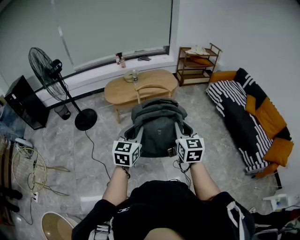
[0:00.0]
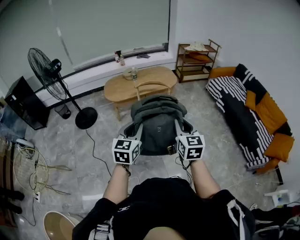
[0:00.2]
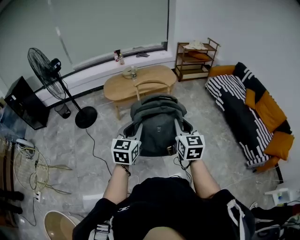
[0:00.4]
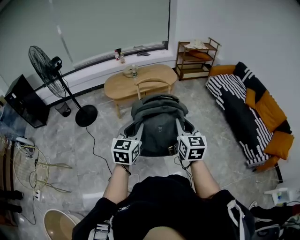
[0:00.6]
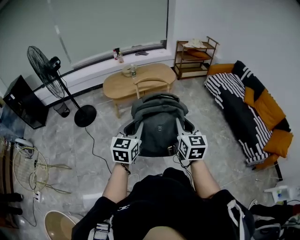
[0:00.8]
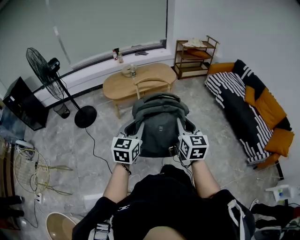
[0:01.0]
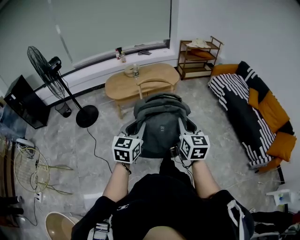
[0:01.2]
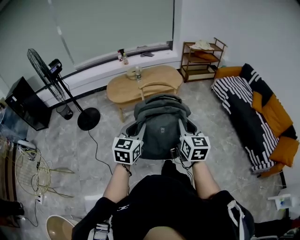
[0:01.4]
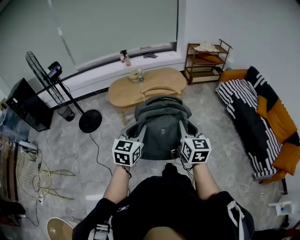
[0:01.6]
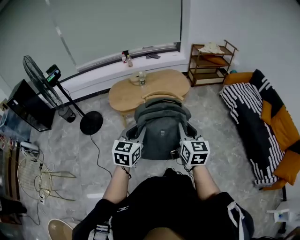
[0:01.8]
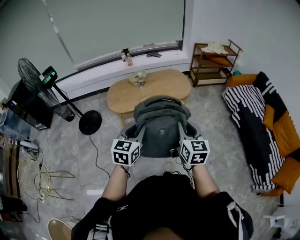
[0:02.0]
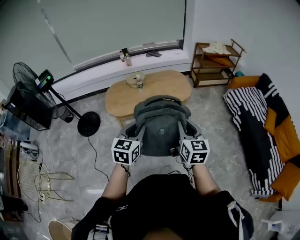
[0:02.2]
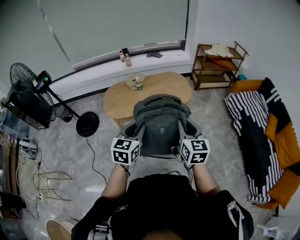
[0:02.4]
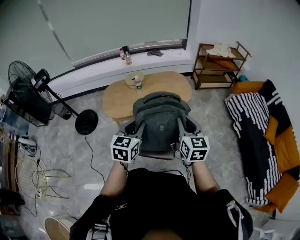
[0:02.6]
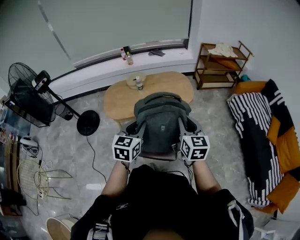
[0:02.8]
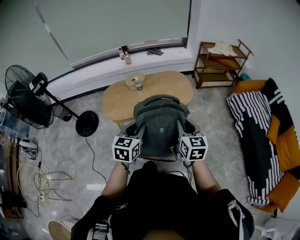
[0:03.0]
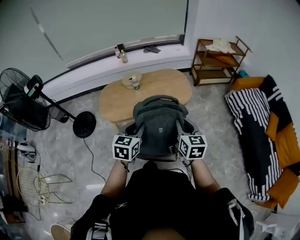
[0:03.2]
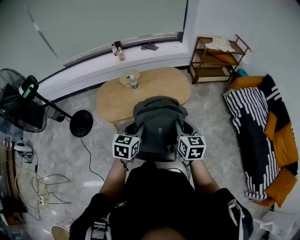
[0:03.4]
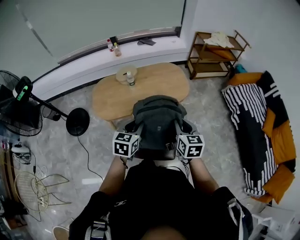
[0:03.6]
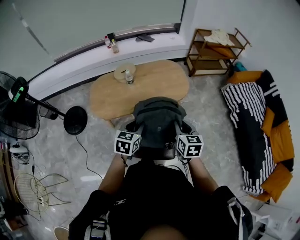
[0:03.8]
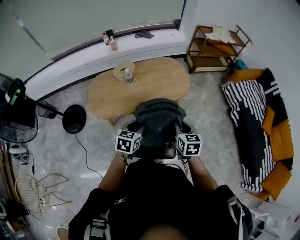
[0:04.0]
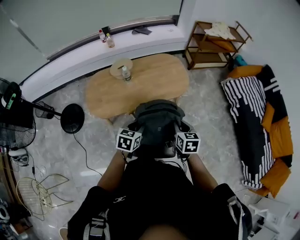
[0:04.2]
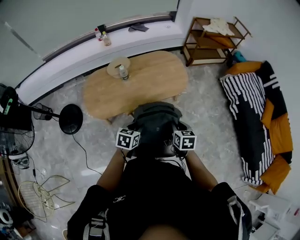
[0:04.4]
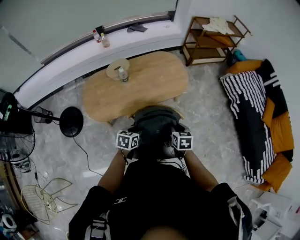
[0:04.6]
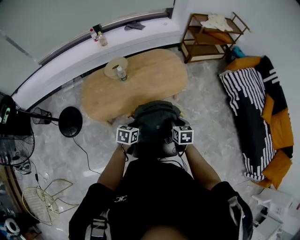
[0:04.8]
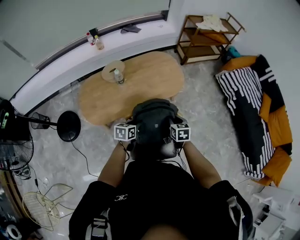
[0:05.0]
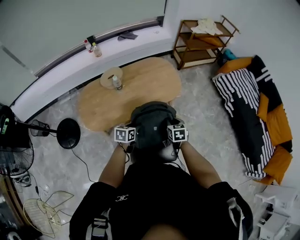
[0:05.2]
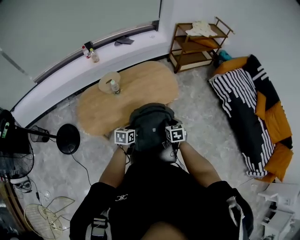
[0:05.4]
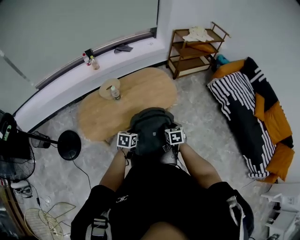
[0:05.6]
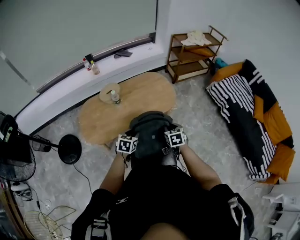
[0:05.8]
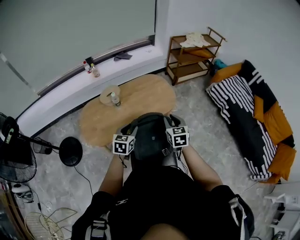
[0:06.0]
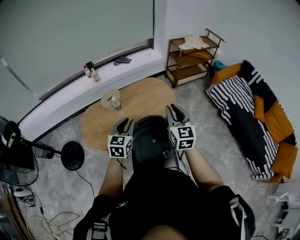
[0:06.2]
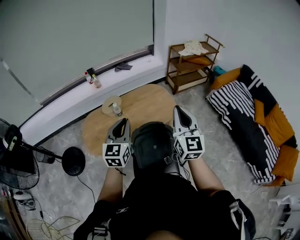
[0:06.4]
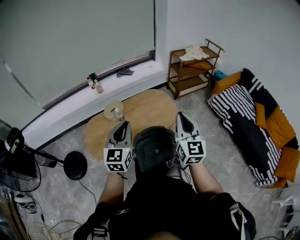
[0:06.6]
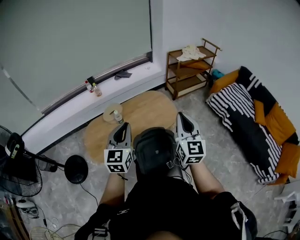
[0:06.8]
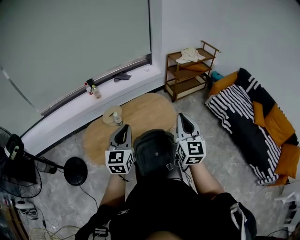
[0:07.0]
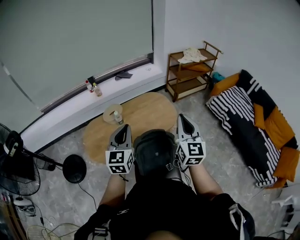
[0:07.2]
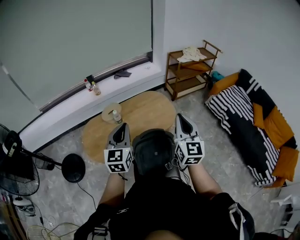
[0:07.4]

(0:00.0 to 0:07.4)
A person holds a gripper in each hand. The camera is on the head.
0:00.0 - 0:01.4: The two grippers go roughly 5 cm forward.
0:01.4 - 0:03.0: The pair of grippers is taken forward, approximately 50 cm.
0:03.0 - 0:04.4: Both grippers move downward and forward, approximately 30 cm. The right gripper turns by roughly 30 degrees, while the left gripper rotates roughly 30 degrees.
0:04.4 - 0:06.0: Both grippers move upward and forward, approximately 10 cm. The right gripper rotates approximately 20 degrees.
0:06.0 - 0:07.4: The two grippers go some 20 cm upward. The left gripper turns by some 30 degrees, and closes its fingers. Meanwhile the right gripper tips its fingers upward by roughly 30 degrees, and closes its fingers.

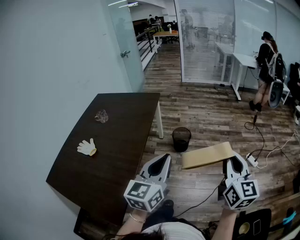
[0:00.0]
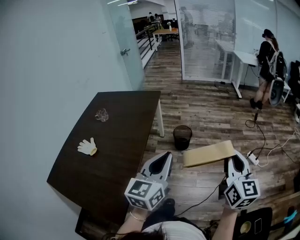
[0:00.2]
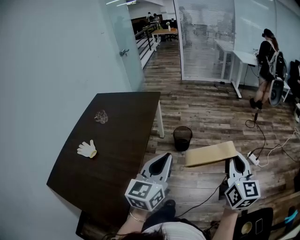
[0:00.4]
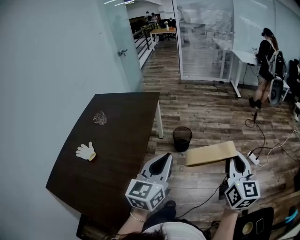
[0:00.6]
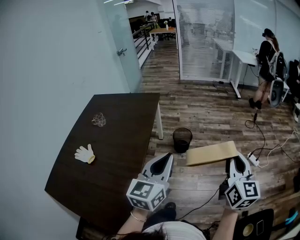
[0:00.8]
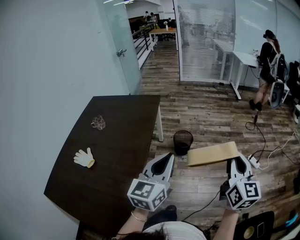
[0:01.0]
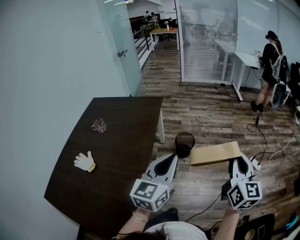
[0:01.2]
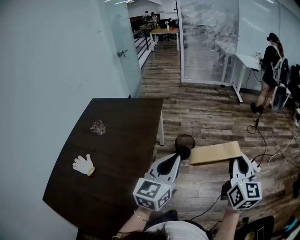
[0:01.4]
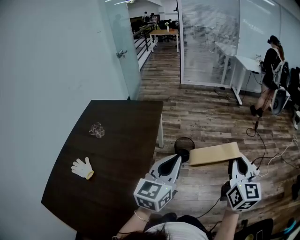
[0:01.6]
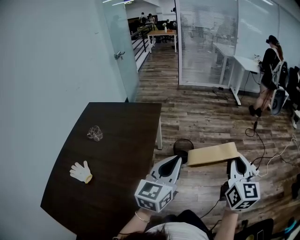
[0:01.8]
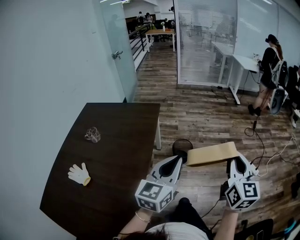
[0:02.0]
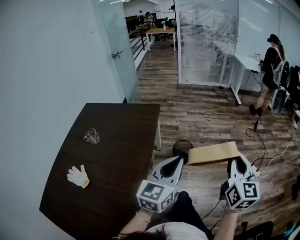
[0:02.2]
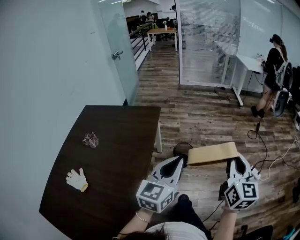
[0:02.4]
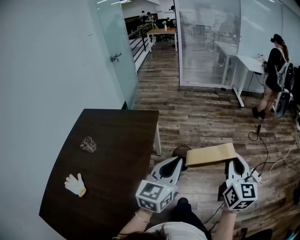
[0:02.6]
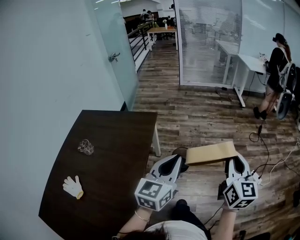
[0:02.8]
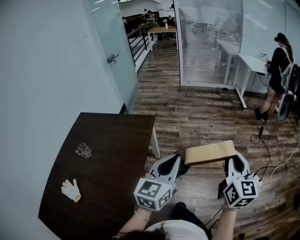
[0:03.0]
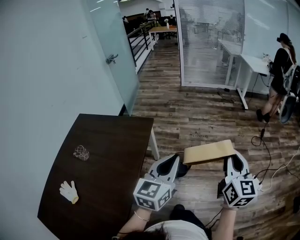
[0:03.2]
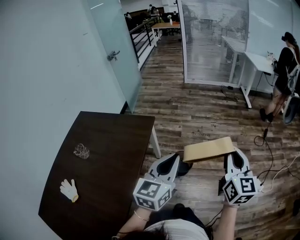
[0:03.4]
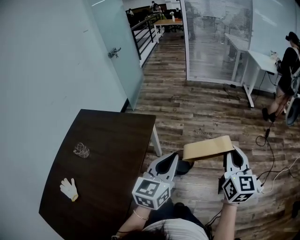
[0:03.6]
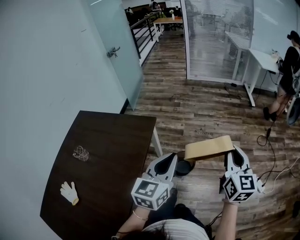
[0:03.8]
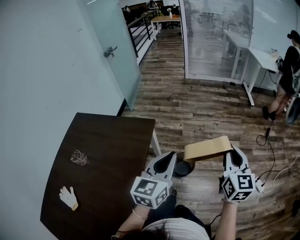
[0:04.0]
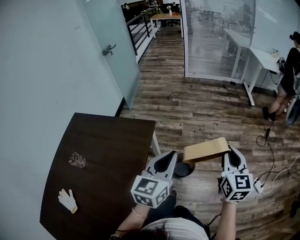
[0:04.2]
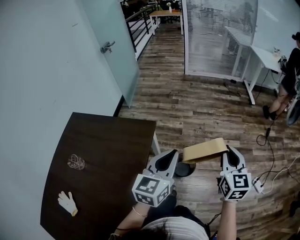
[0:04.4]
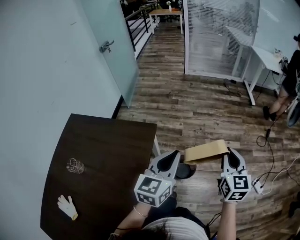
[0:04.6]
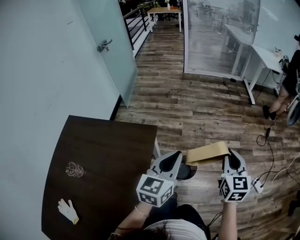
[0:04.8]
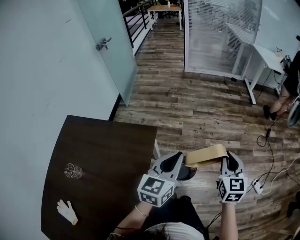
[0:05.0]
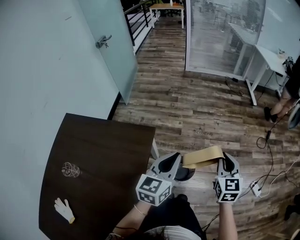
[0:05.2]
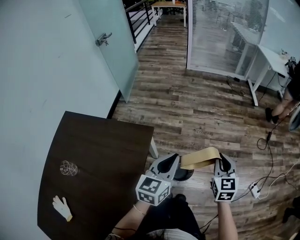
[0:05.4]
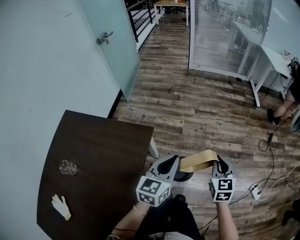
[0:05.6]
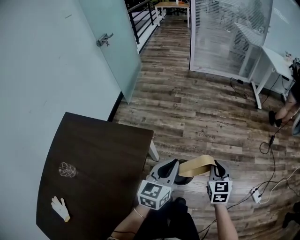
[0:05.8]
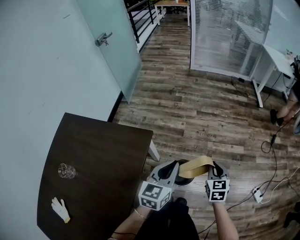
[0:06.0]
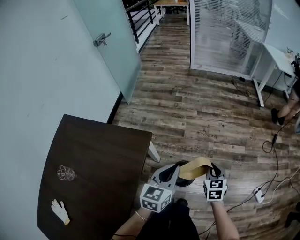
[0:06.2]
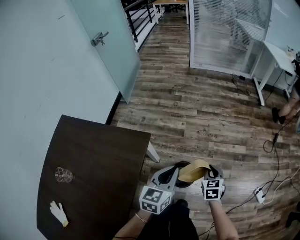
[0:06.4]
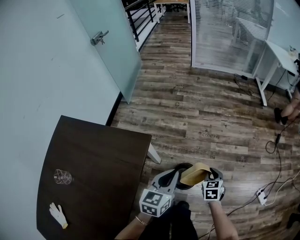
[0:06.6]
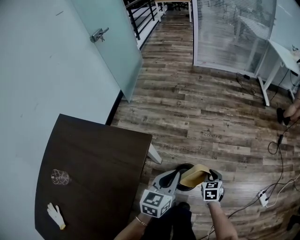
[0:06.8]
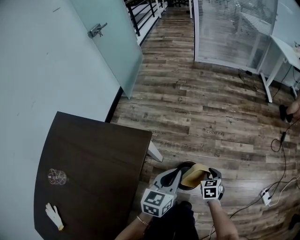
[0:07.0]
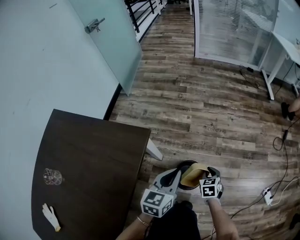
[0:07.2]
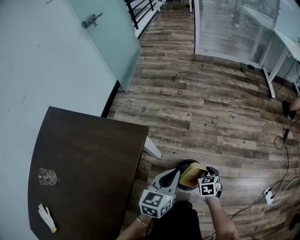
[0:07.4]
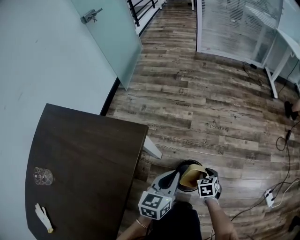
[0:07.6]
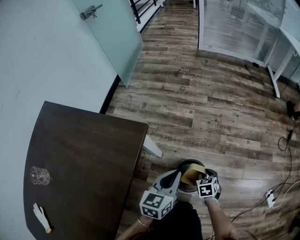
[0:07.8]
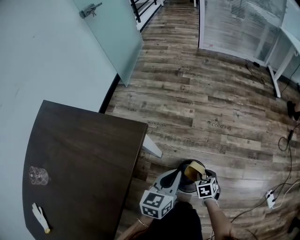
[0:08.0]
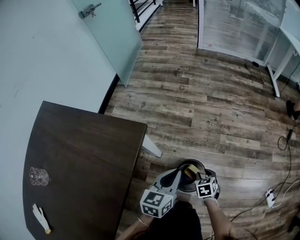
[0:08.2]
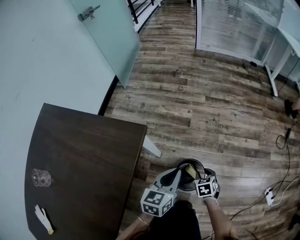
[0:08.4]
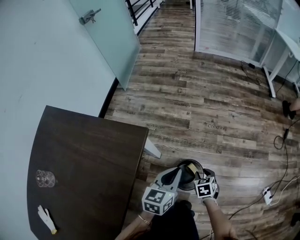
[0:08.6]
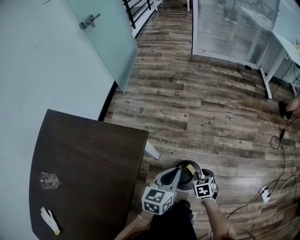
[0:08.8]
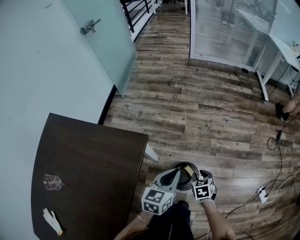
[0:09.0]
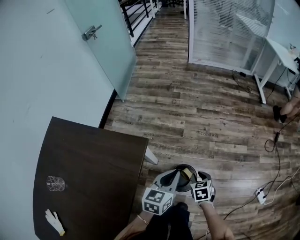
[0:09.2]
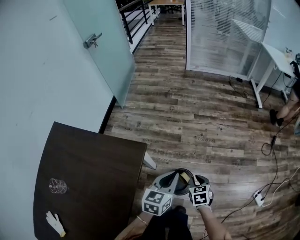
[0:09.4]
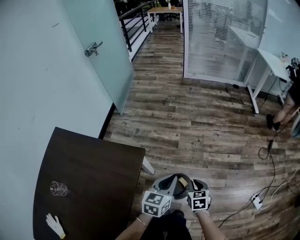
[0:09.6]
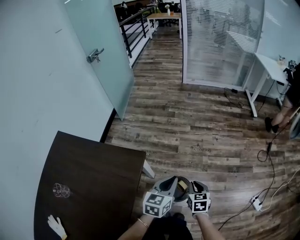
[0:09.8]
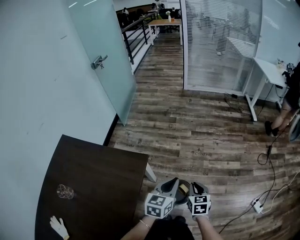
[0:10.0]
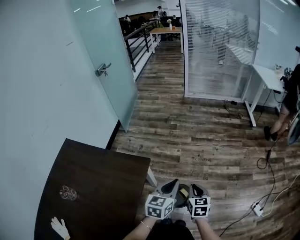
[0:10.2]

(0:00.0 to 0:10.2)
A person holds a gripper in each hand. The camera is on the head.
0:00.0 - 0:01.4: Both grippers travel together forward and to the left, approximately 20 cm.
0:01.4 - 0:03.0: Both grippers move forward, approximately 30 cm.
0:03.0 - 0:04.4: Both grippers travel together forward, approximately 25 cm.
0:04.4 - 0:05.8: The left gripper shifts approximately 20 cm forward and downward; the right gripper is displaced downward and forward by approximately 25 cm.
0:05.8 - 0:07.2: The two grippers go roughly 30 cm downward. The right gripper changes its angle by about 20 degrees.
0:07.2 - 0:08.8: The left gripper travels downward and back again, some 15 cm each way. Meanwhile the right gripper goes downward and returns, approximately 15 cm each way, and opens up.
0:08.8 - 0:10.2: Both grippers move upward, roughly 30 cm. The right gripper changes its angle by some 30 degrees, and closes.

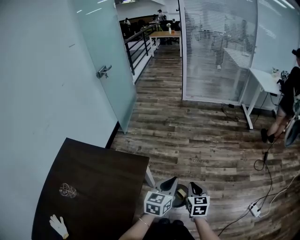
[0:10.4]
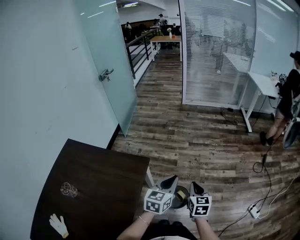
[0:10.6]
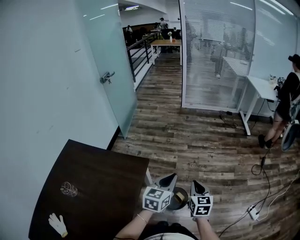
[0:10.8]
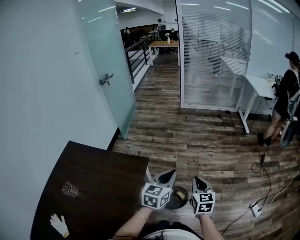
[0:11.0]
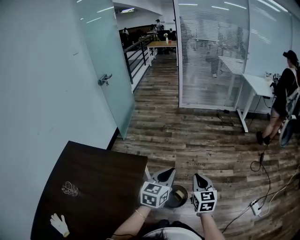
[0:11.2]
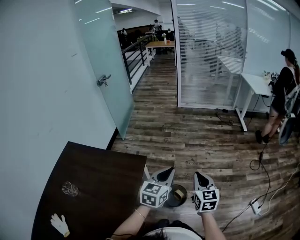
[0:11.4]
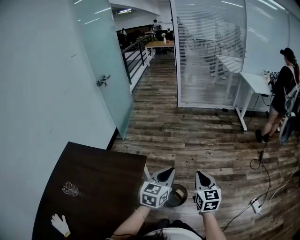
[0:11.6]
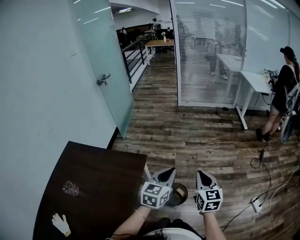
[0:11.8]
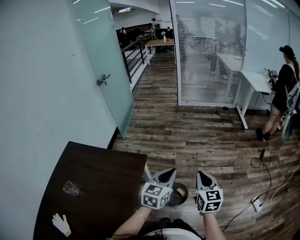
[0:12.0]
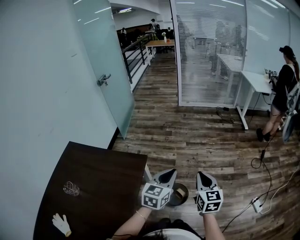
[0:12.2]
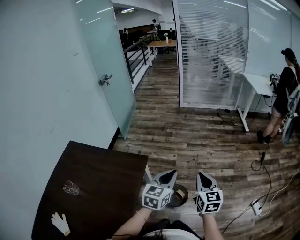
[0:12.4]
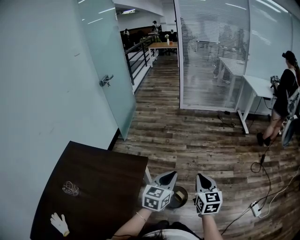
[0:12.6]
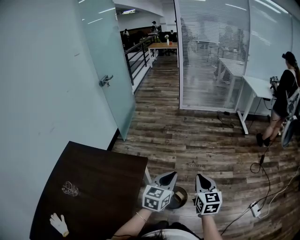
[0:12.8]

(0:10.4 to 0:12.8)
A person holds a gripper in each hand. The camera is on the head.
0:10.4 - 0:11.6: The left gripper goes some 10 cm upward and backward. Meanwhile the right gripper is displaced upward, to the right and backward by roughly 15 cm.
0:11.6 - 0:12.8: Both grippers stay about where they are.

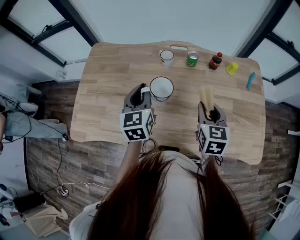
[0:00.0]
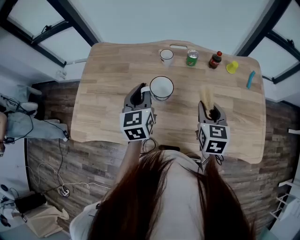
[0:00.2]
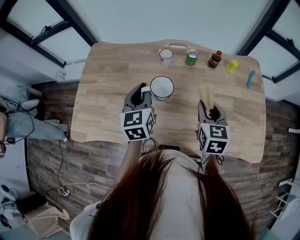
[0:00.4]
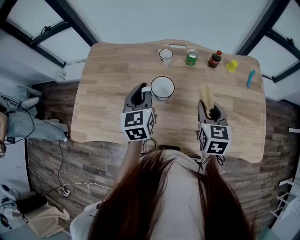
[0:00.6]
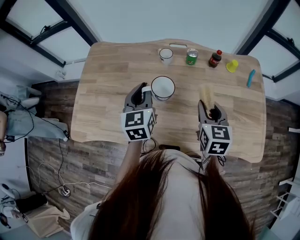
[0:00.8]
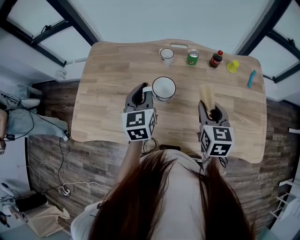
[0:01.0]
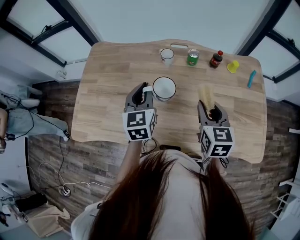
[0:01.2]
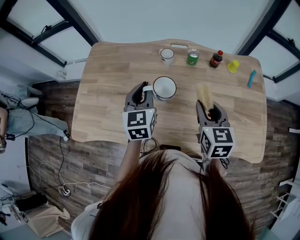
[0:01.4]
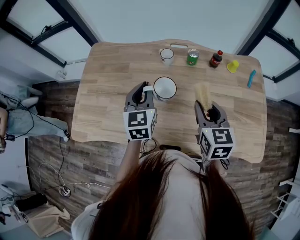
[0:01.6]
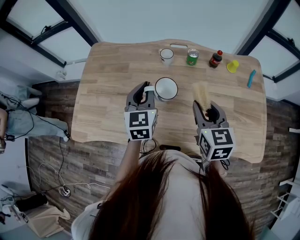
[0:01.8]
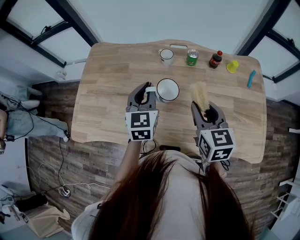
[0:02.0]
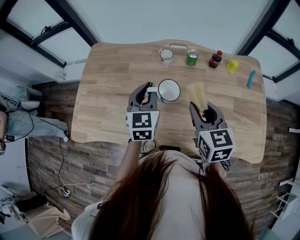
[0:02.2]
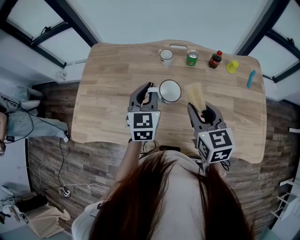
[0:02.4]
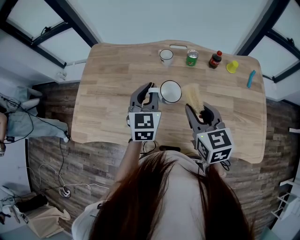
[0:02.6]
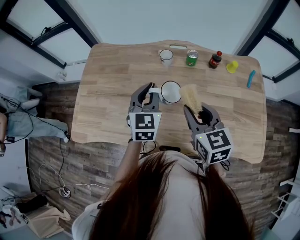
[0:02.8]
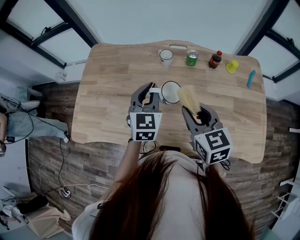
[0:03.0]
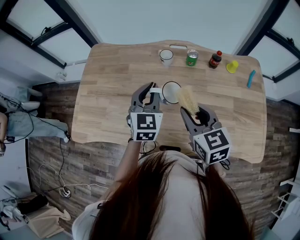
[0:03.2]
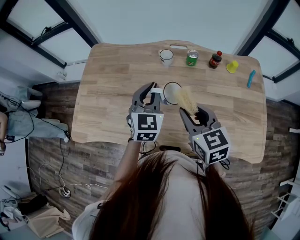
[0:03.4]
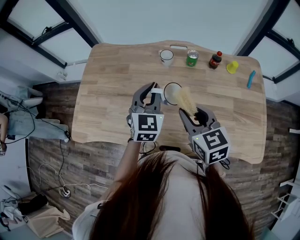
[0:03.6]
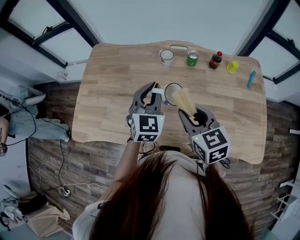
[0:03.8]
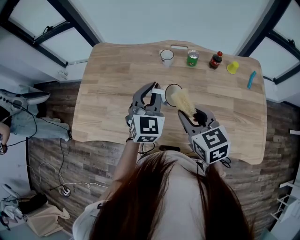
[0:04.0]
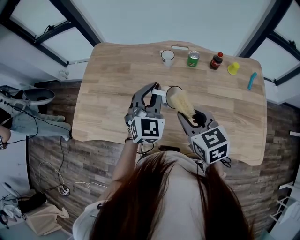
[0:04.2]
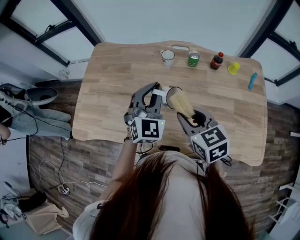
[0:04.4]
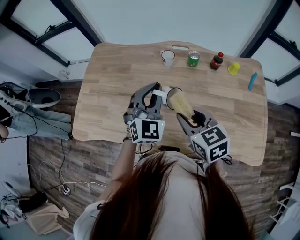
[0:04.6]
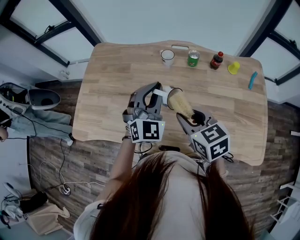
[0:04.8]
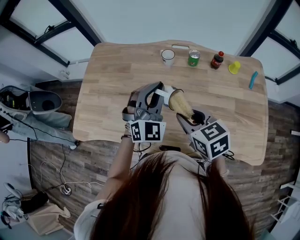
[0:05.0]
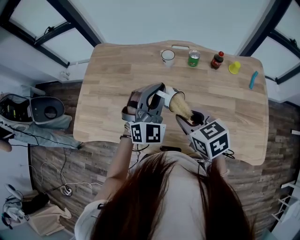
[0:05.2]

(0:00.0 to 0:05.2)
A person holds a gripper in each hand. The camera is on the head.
0:00.0 - 0:01.8: The right gripper moves approximately 5 cm.
0:01.8 - 0:03.4: The right gripper travels to the left by roughly 5 cm.
0:03.4 - 0:05.2: The left gripper turns by about 40 degrees.
